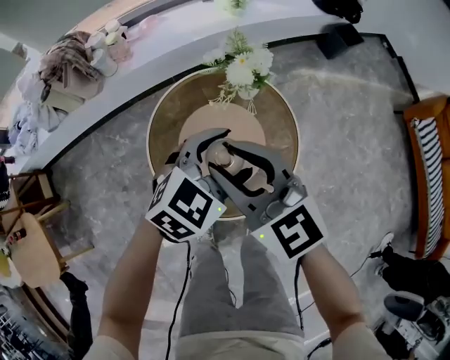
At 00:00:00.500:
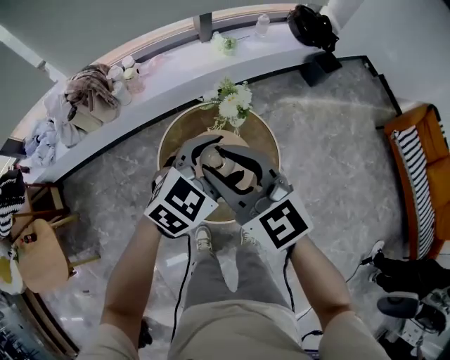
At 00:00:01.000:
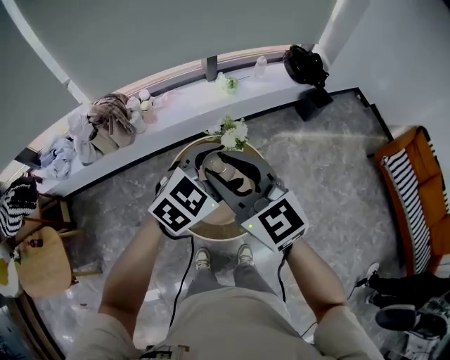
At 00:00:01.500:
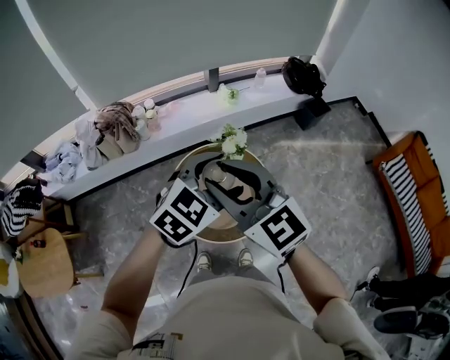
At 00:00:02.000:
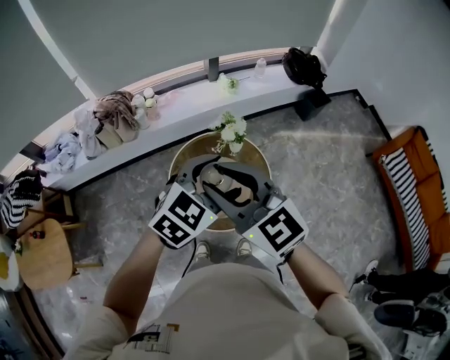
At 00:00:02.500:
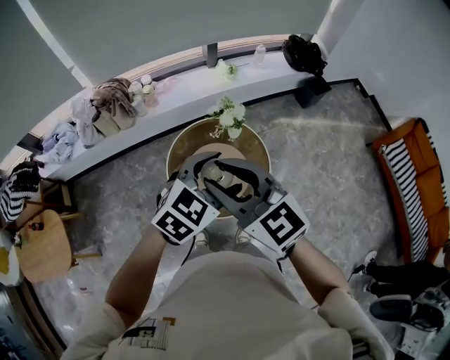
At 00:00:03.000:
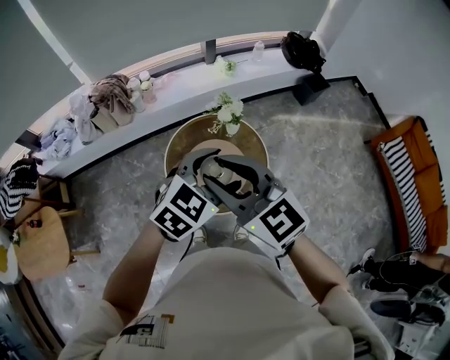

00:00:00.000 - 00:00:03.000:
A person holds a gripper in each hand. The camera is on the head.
00:00:00.000 - 00:00:01.500: Both grippers move upward, roughly 35 cm.
00:00:01.500 - 00:00:03.000: Both grippers travel together backward, about 5 cm.

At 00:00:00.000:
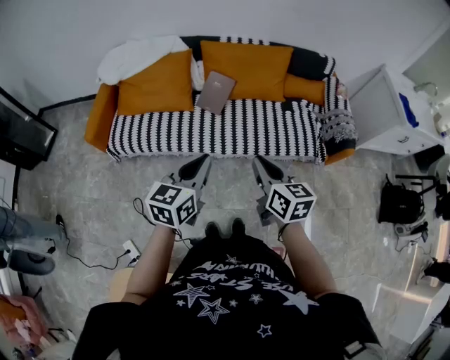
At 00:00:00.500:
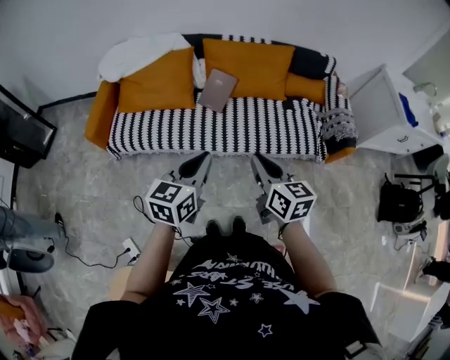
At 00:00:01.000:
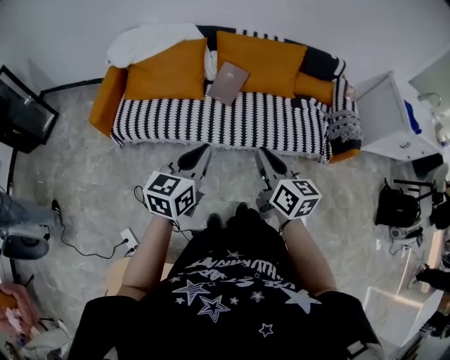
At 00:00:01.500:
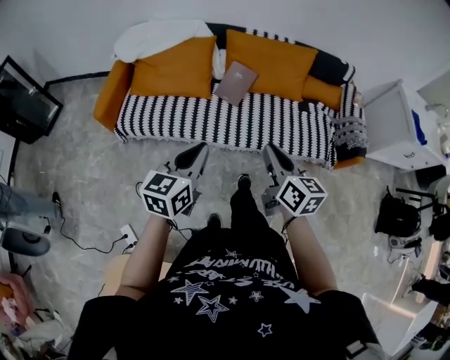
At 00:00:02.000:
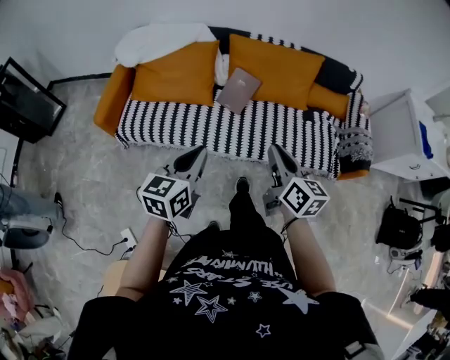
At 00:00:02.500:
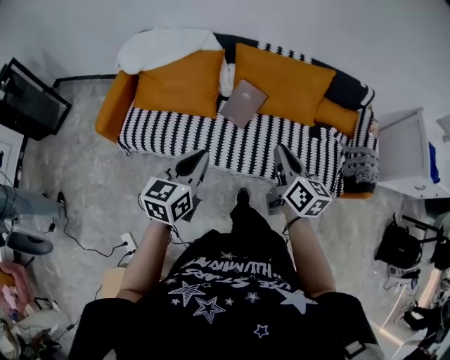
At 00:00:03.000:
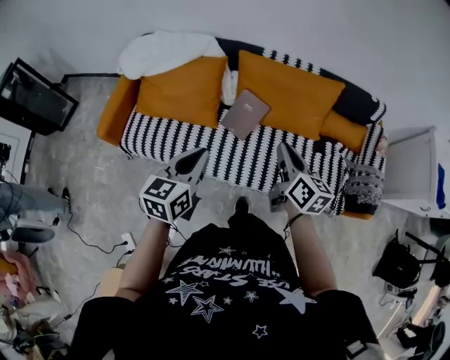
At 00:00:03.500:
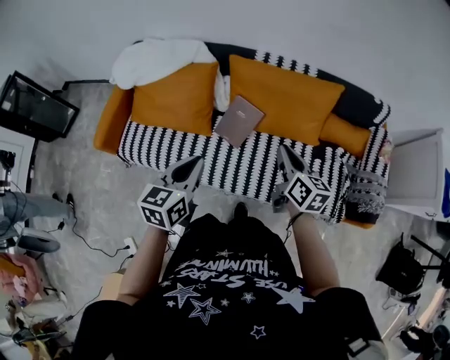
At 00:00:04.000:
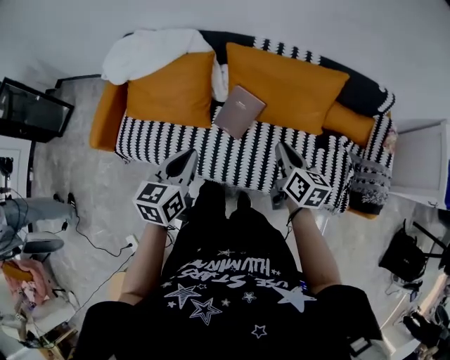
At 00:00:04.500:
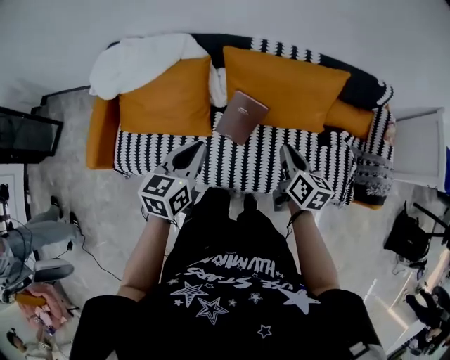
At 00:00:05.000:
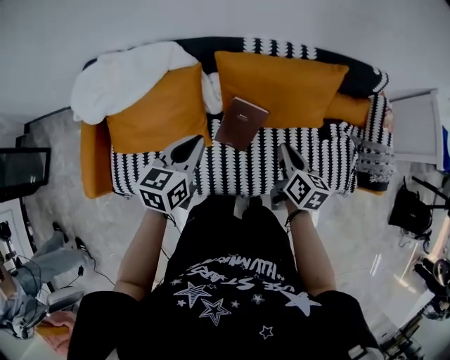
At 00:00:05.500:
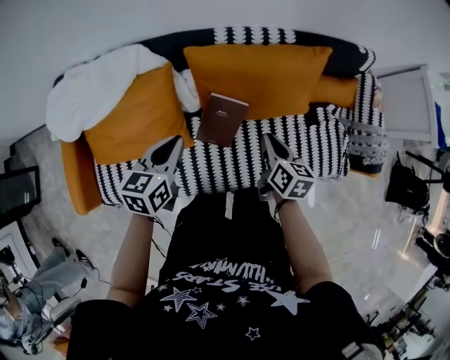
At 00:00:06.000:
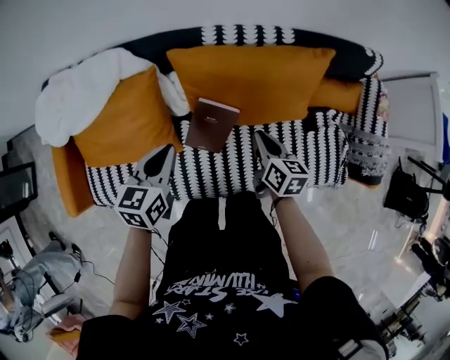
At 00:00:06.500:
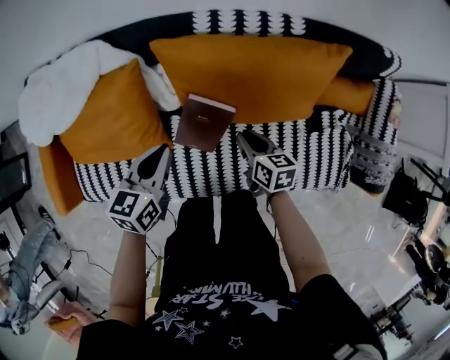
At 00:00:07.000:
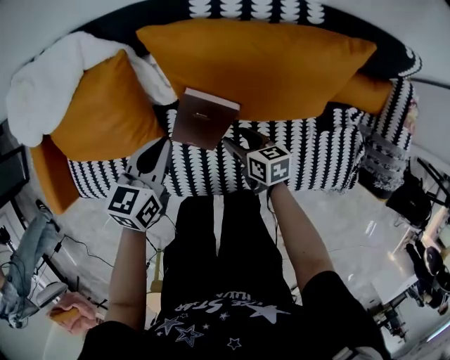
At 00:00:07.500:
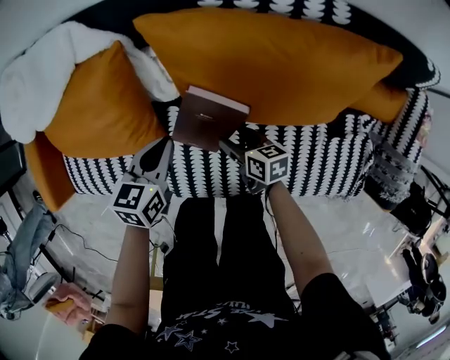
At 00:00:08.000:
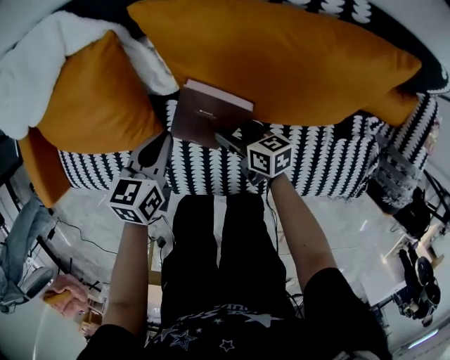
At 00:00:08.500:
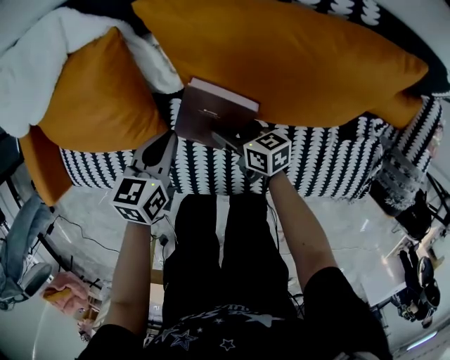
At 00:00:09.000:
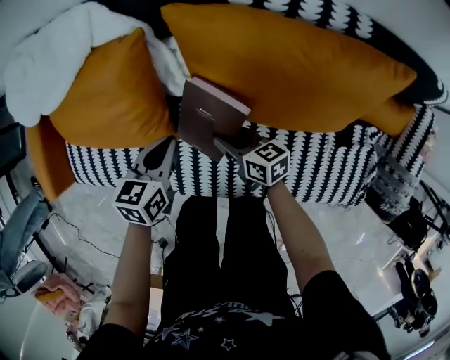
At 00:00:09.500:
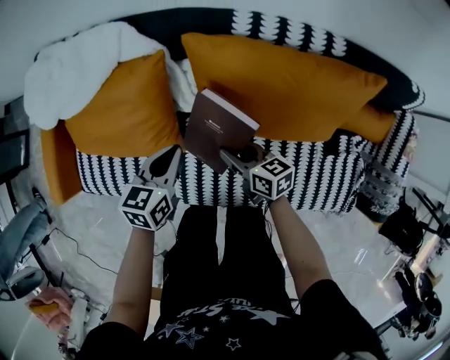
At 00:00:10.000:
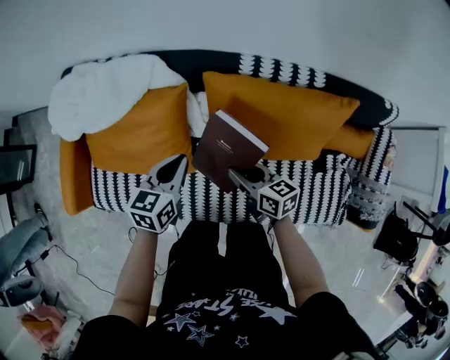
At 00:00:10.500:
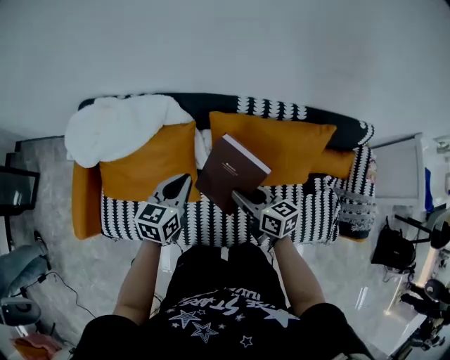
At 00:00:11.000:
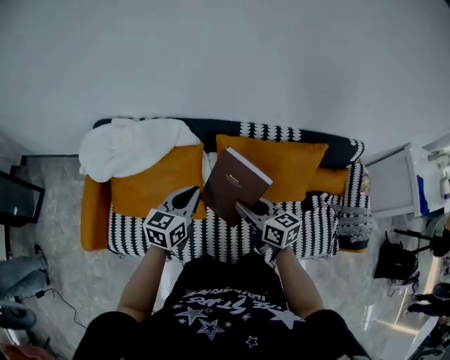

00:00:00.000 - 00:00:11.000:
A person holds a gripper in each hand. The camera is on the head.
00:00:00.000 - 00:00:02.000: The left gripper travels to the left and forward by some 10 cm; the right gripper moves forward, about 10 cm.
00:00:02.000 - 00:00:03.500: Both grippers move forward, roughly 25 cm.
00:00:03.500 - 00:00:05.500: The right gripper heads downward, forward and to the left, covering approximately 15 cm, and rotates approximately 30 degrees, while the left gripper is displaced forward, to the left and downward by about 25 cm, and swivels about 20 degrees.
00:00:05.500 - 00:00:07.500: The two grippers go about 25 cm downward. The right gripper swivels about 40 degrees, and opens its fingers.
00:00:07.500 - 00:00:09.000: The right gripper heads to the left, covering some 5 cm, and closes its fingers.
00:00:09.000 - 00:00:11.000: The two grippers go roughly 30 cm upward. The left gripper swivels roughly 30 degrees. The right gripper rotates approximately 30 degrees.

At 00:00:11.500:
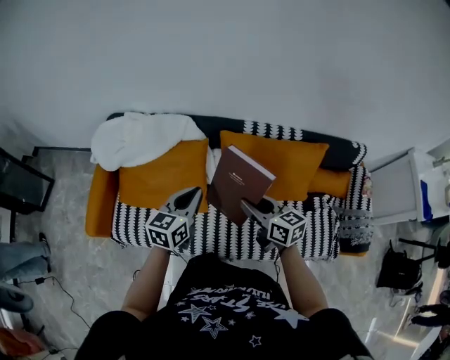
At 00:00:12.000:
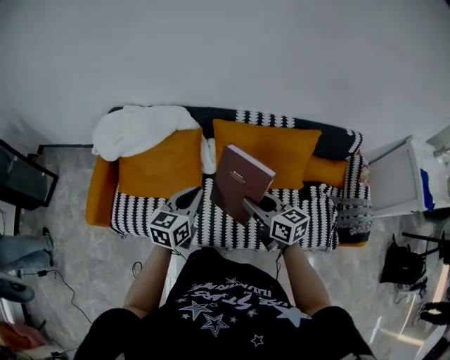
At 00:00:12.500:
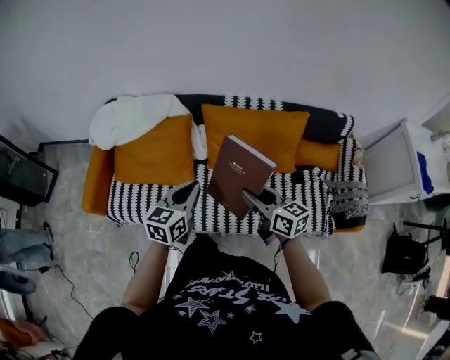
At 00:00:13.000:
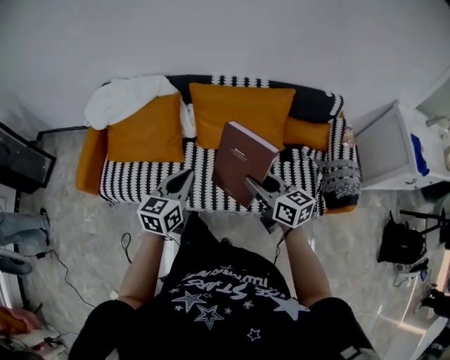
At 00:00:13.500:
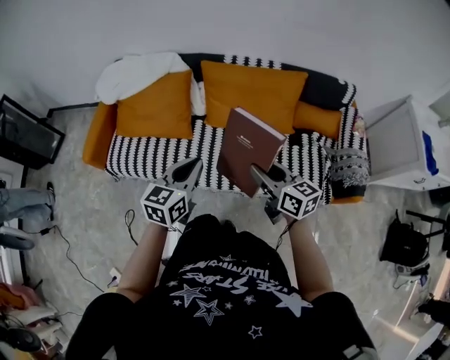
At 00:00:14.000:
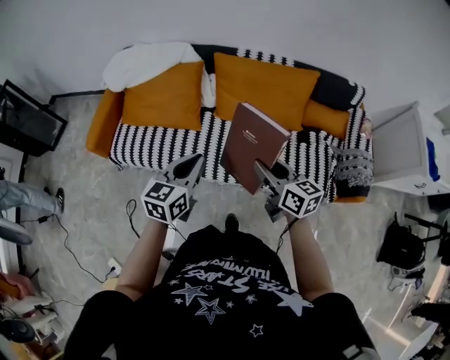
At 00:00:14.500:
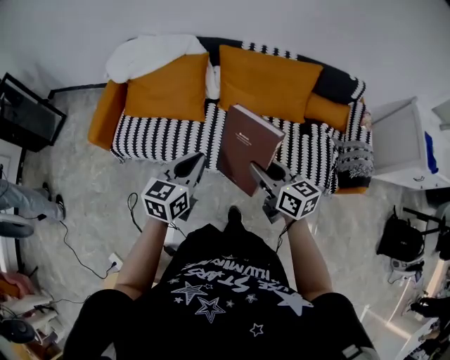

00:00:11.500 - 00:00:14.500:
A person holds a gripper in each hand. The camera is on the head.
00:00:11.500 - 00:00:13.000: Both grippers travel together backward and to the right, some 25 cm.
00:00:13.000 - 00:00:14.500: Both grippers move backward and to the left, about 10 cm.

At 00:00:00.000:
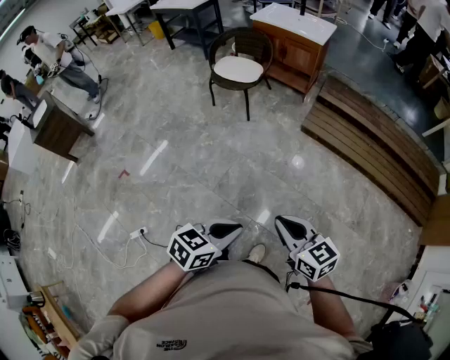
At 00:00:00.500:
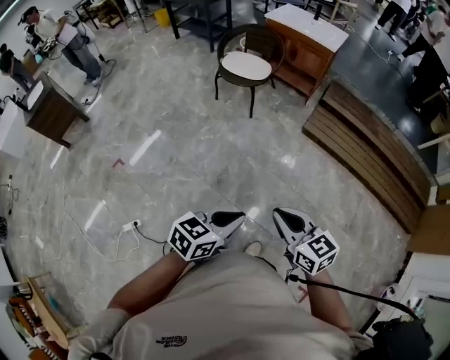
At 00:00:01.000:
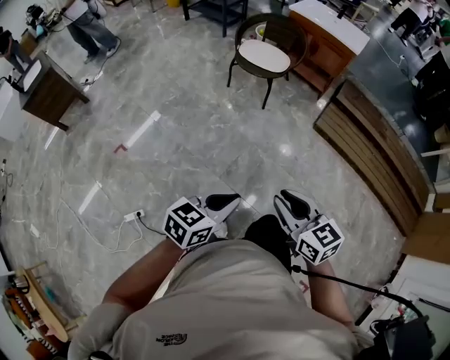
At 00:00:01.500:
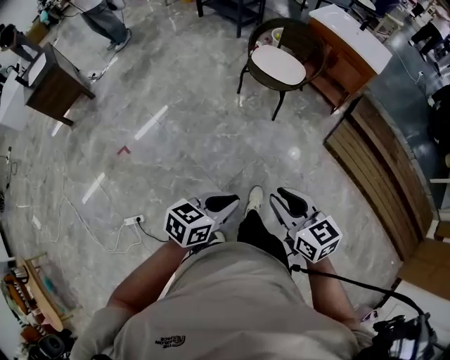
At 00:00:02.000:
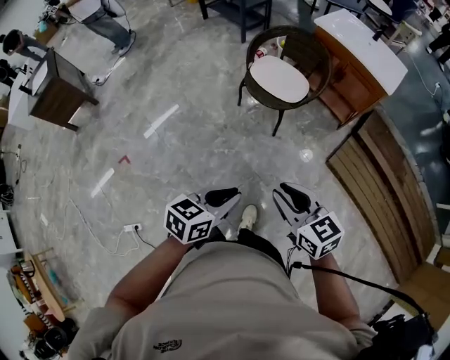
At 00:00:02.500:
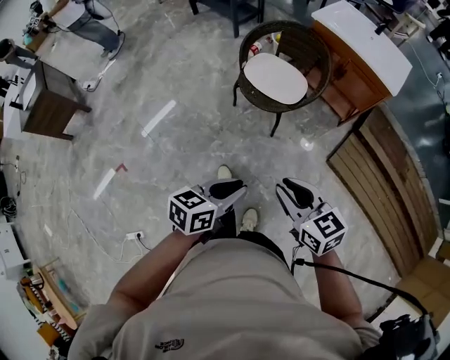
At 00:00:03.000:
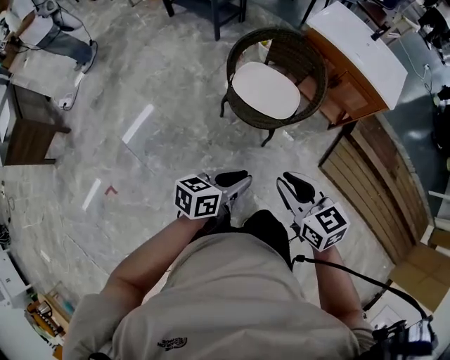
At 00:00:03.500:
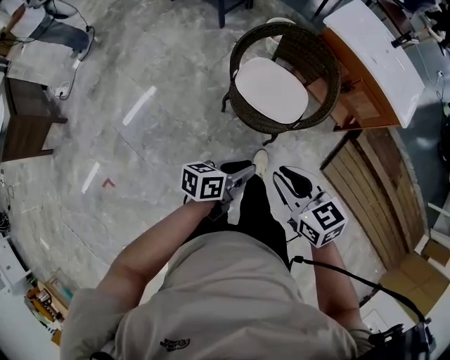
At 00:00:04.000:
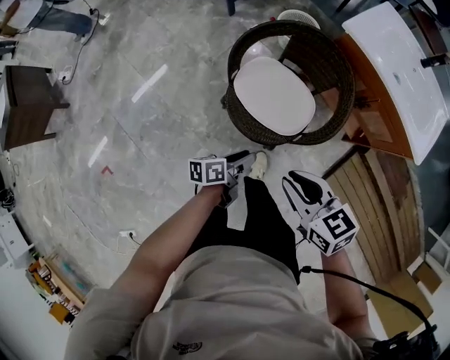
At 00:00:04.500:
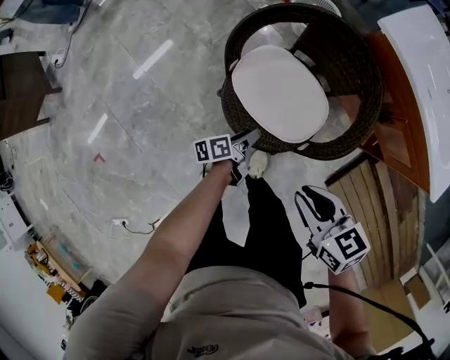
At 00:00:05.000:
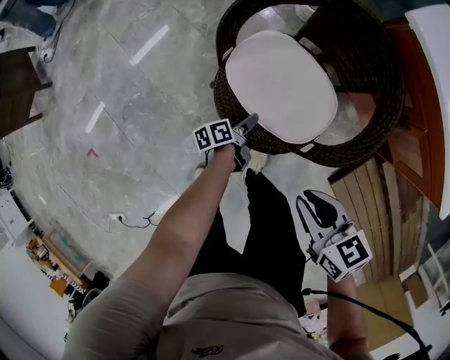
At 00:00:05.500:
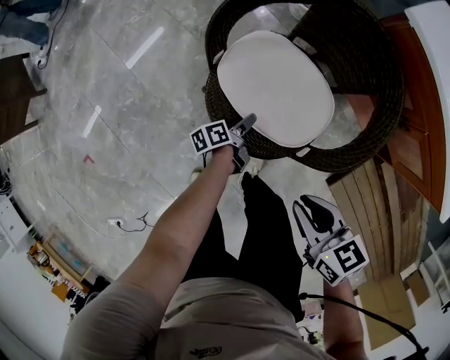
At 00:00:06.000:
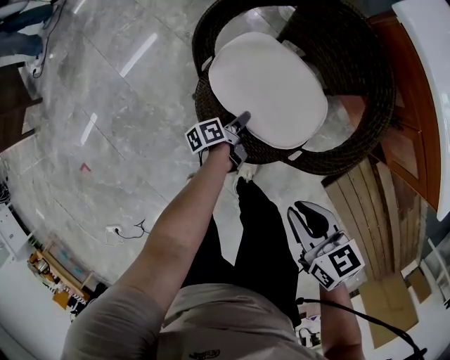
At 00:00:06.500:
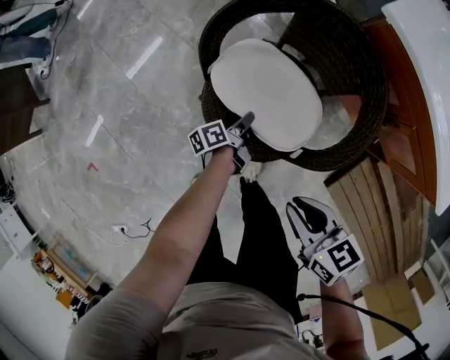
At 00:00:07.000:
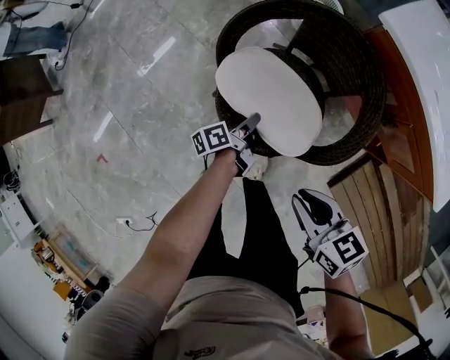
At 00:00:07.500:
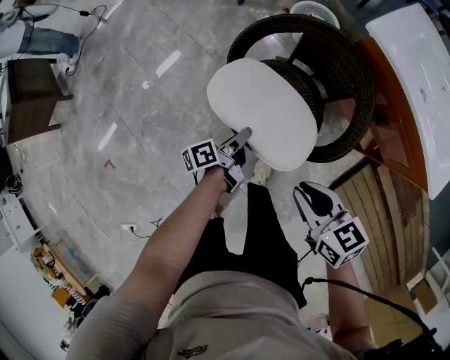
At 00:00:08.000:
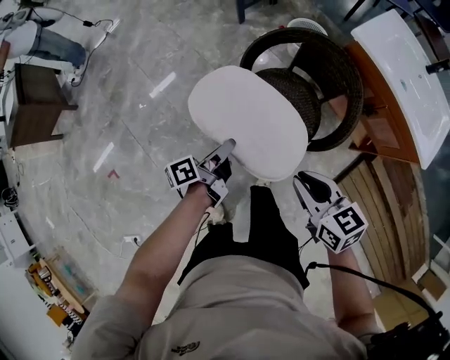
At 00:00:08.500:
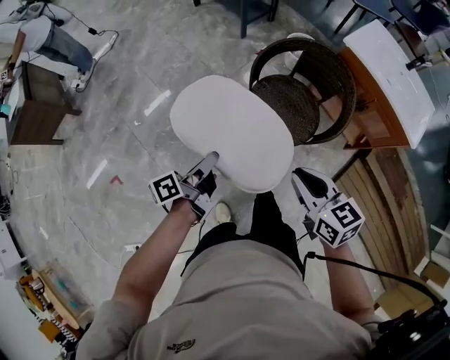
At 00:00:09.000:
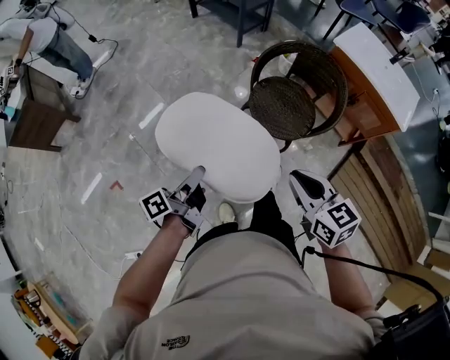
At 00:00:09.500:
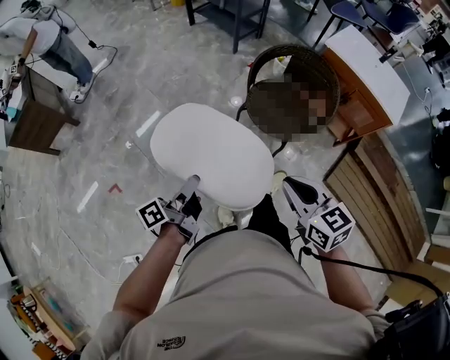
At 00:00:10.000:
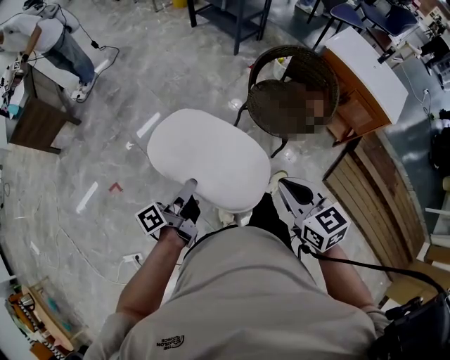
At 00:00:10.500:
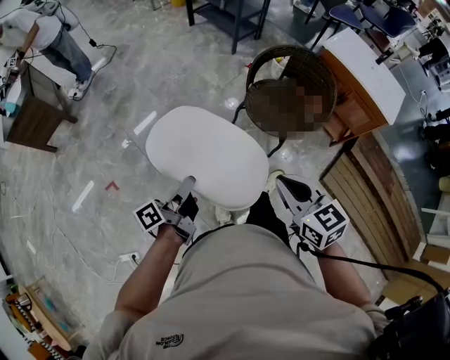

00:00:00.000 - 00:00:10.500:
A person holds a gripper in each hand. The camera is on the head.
00:00:00.000 - 00:00:02.000: The pair of grippers is taken forward, roughly 50 cm. The left gripper changes its angle by some 20 degrees; the right gripper opens its fingers.
00:00:02.000 - 00:00:04.000: The two grippers travel together, forward, about 50 cm. The left gripper heads downward, covering approximately 25 cm, rolls counterclockwise, seen from behind, by some 40 degrees, and opens up.
00:00:04.000 - 00:00:06.500: The right gripper goes about 20 cm downward and to the right, while the left gripper travels downward and forward by about 30 cm, rotates some 30 degrees, and opens, then closes once more.
00:00:06.500 - 00:00:08.500: The right gripper moves upward, to the left and backward, roughly 35 cm. The left gripper goes some 60 cm upward, to the left and backward, and turns by about 20 degrees.
00:00:08.500 - 00:00:10.500: Both grippers move backward and to the left, roughly 25 cm.
